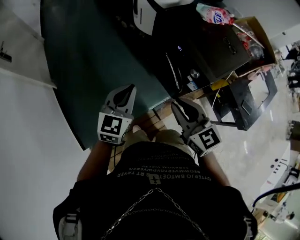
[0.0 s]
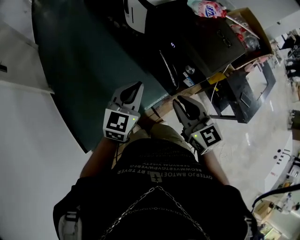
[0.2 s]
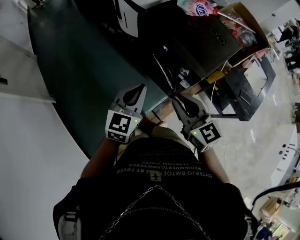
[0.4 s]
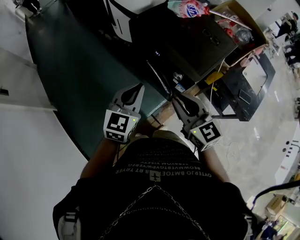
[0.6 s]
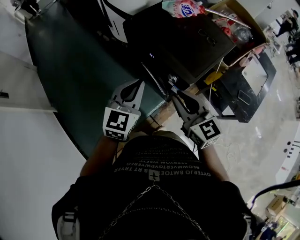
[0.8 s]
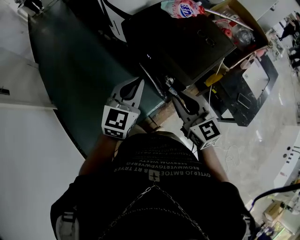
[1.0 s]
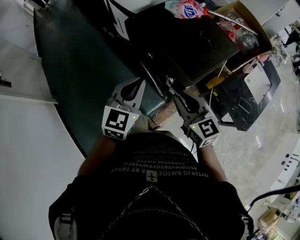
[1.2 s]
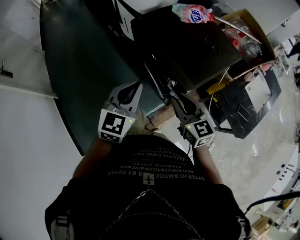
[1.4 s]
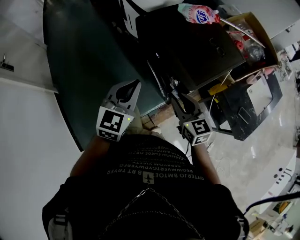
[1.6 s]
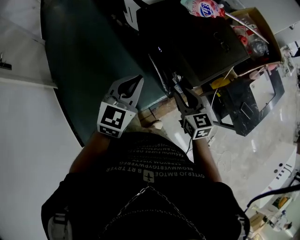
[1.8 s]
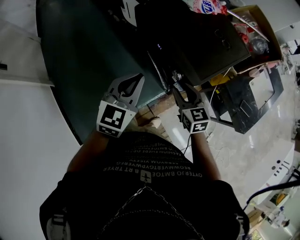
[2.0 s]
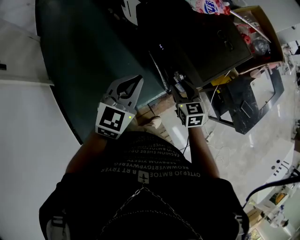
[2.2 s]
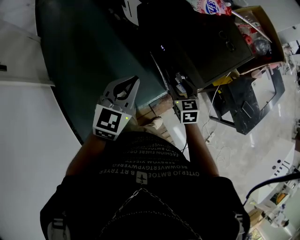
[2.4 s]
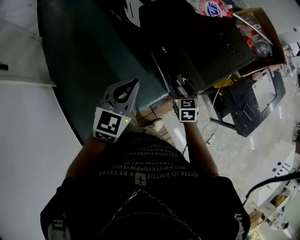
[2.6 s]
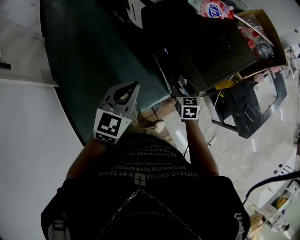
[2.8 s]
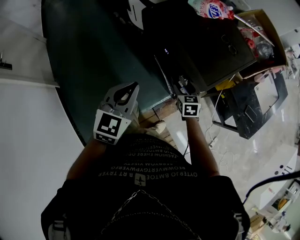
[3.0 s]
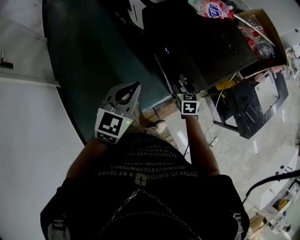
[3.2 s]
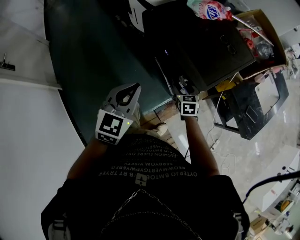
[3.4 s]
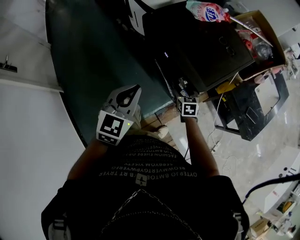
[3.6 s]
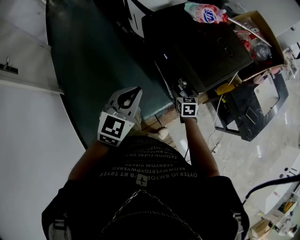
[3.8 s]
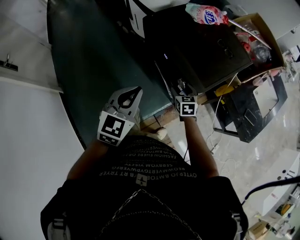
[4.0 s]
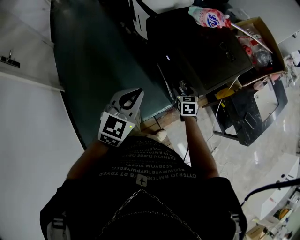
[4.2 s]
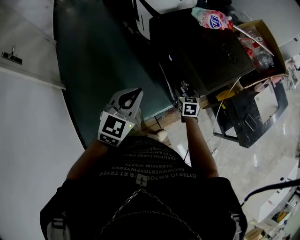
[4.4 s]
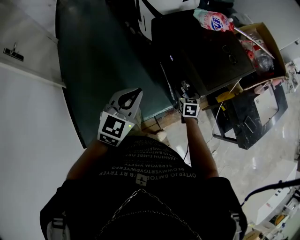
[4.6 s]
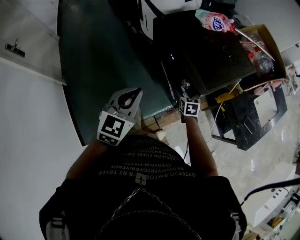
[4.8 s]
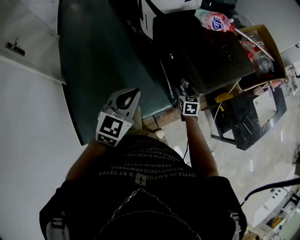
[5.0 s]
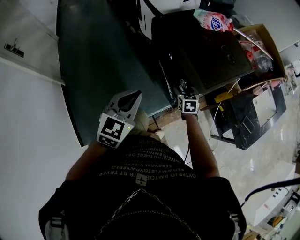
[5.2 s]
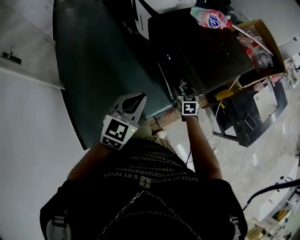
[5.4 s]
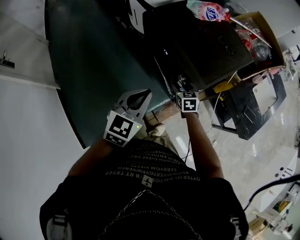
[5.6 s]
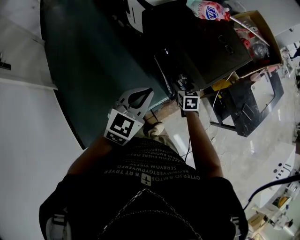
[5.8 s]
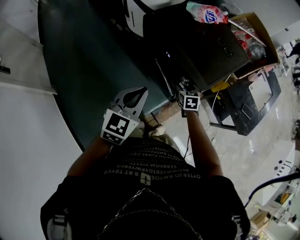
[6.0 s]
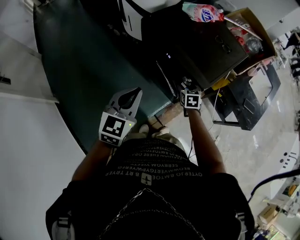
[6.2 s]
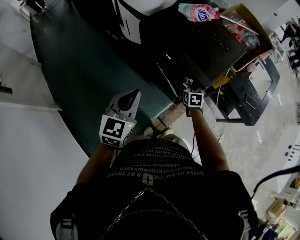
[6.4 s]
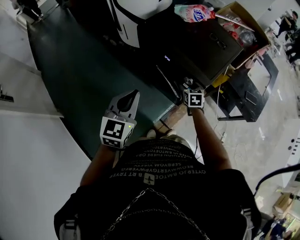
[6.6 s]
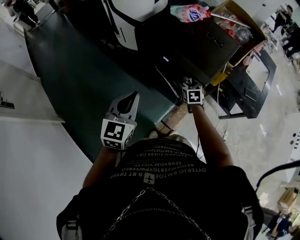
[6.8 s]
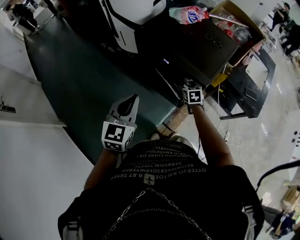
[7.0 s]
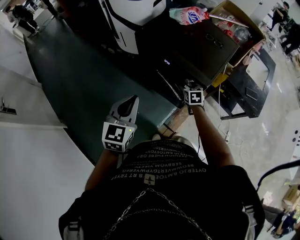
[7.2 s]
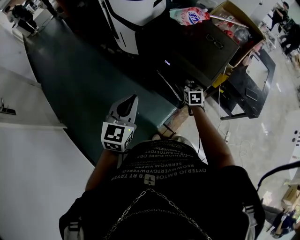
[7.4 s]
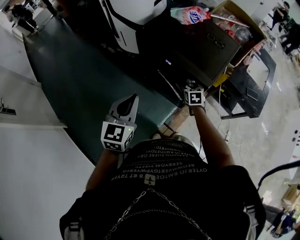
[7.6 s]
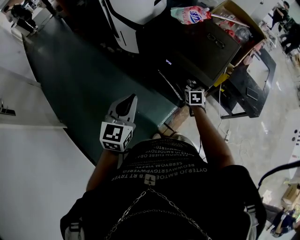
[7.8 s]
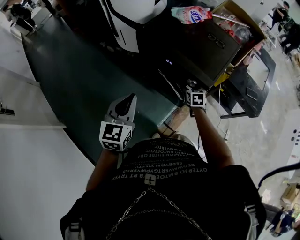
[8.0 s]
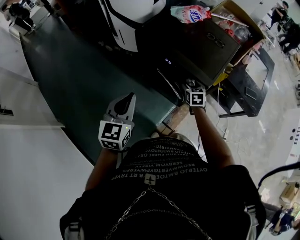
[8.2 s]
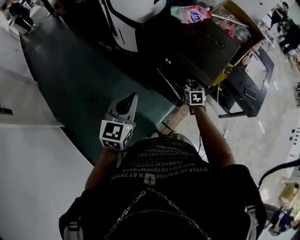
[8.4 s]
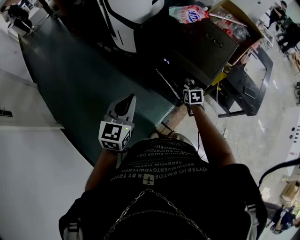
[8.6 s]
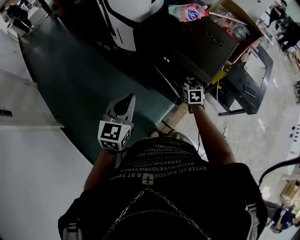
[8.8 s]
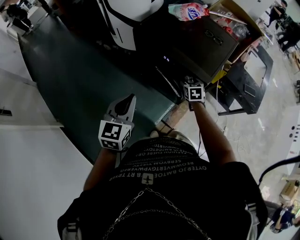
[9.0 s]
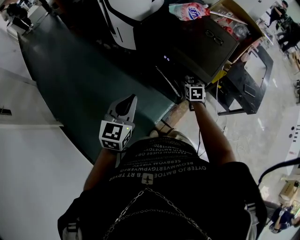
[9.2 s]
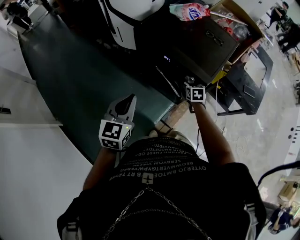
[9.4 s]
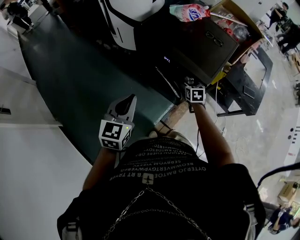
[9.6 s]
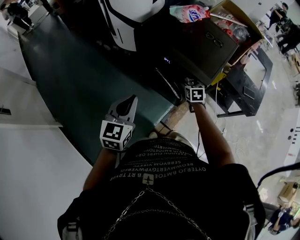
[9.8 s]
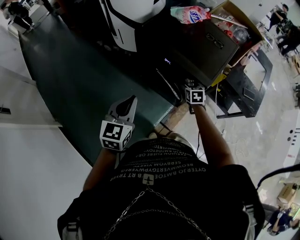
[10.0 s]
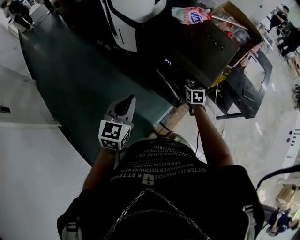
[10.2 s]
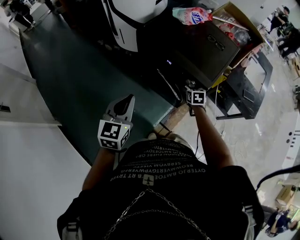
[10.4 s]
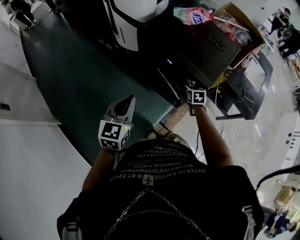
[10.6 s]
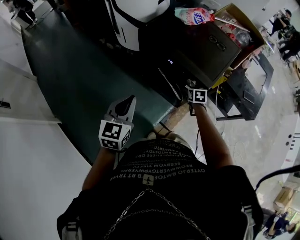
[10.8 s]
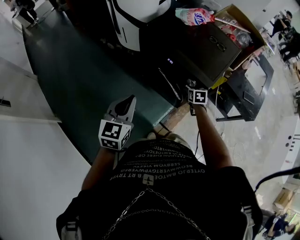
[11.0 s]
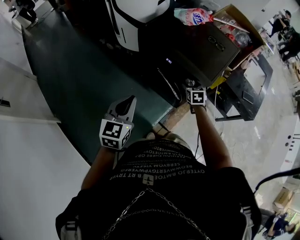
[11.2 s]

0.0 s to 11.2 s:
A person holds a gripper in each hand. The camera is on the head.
0.0 to 1.6 s: The right gripper moves to the right and forward, roughly 20 cm. Meanwhile the left gripper goes about 20 cm to the right.
1.6 to 3.2 s: The right gripper goes approximately 20 cm downward and forward, turns by some 30 degrees, and opens up. The left gripper shifts by roughly 5 cm.
3.2 to 4.8 s: The left gripper moves backward, roughly 5 cm.
4.8 to 6.4 s: The left gripper goes about 10 cm to the left.
6.4 to 8.0 s: The left gripper moves to the left, roughly 5 cm.
8.0 to 11.2 s: There are only small adjustments of the grippers.

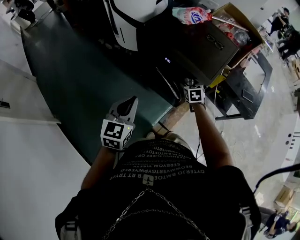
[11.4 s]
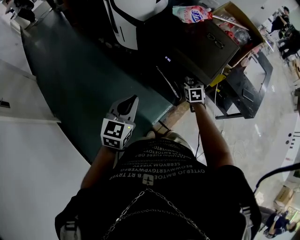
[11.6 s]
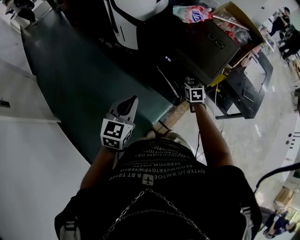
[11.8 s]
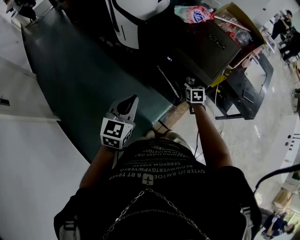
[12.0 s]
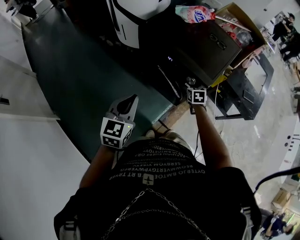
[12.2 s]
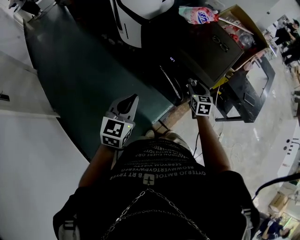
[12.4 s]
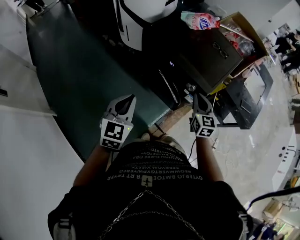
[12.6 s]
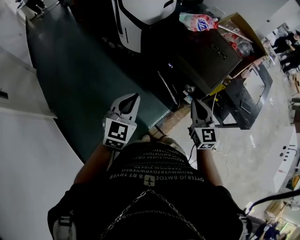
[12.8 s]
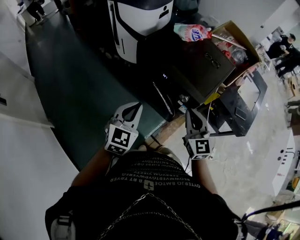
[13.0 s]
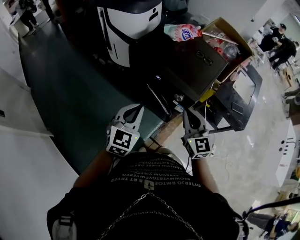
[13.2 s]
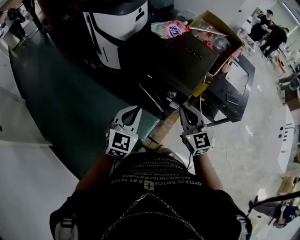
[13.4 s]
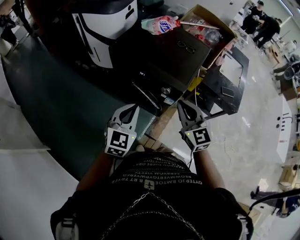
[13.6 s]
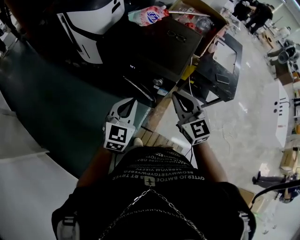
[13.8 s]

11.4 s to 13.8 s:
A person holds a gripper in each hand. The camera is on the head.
11.4 to 12.6 s: The right gripper is displaced upward and backward by approximately 15 cm, changes its angle by roughly 30 degrees, and closes its fingers.
12.6 to 13.8 s: The left gripper travels to the right by about 15 cm. The right gripper heads upward and backward, covering about 15 cm.

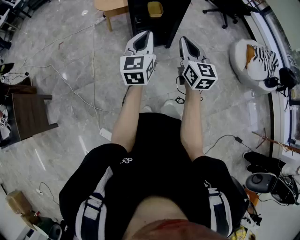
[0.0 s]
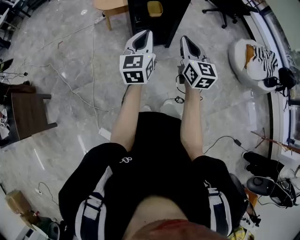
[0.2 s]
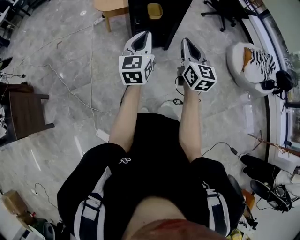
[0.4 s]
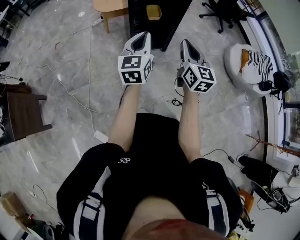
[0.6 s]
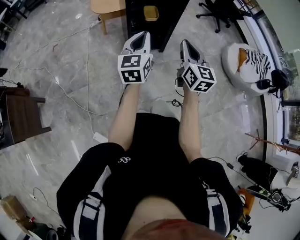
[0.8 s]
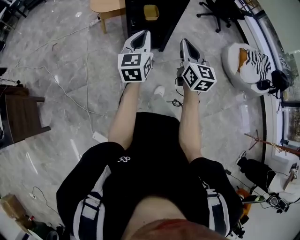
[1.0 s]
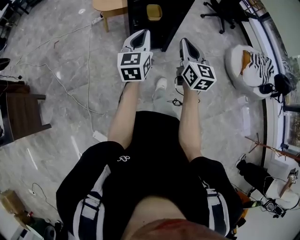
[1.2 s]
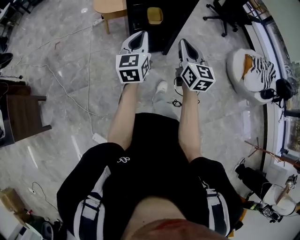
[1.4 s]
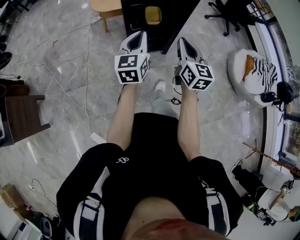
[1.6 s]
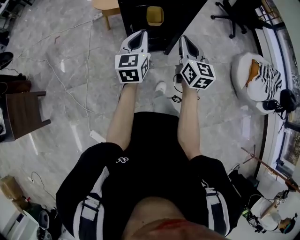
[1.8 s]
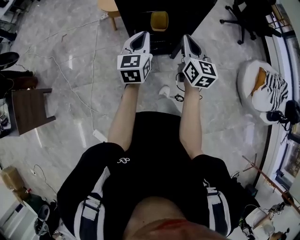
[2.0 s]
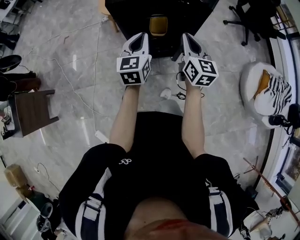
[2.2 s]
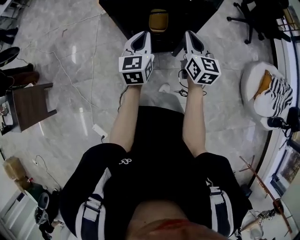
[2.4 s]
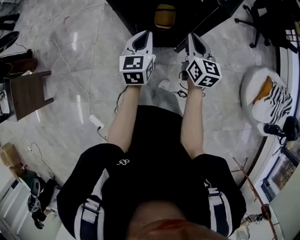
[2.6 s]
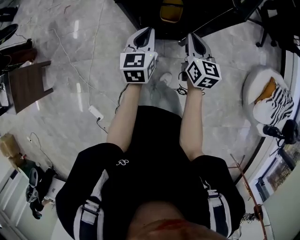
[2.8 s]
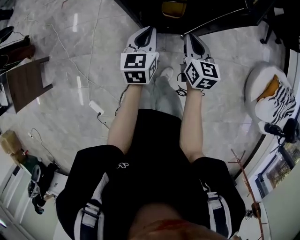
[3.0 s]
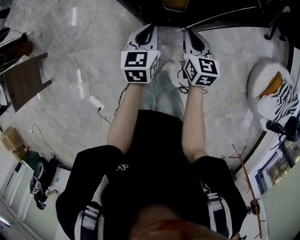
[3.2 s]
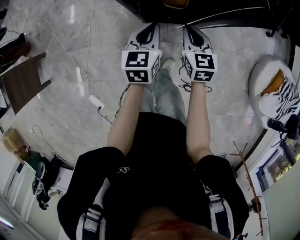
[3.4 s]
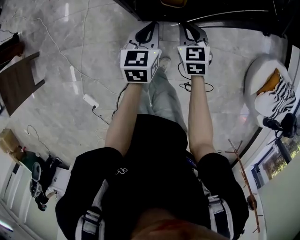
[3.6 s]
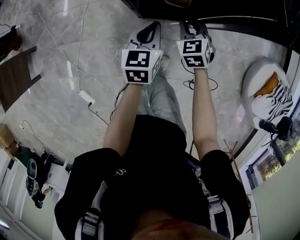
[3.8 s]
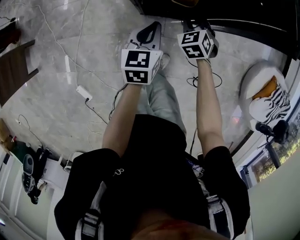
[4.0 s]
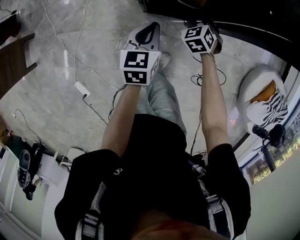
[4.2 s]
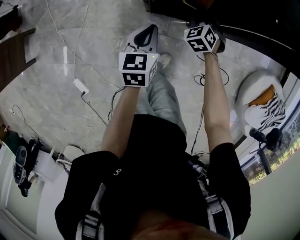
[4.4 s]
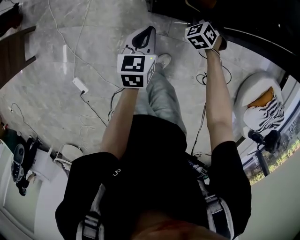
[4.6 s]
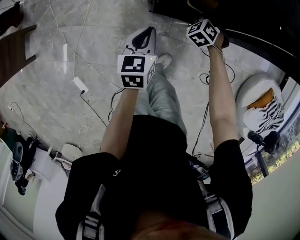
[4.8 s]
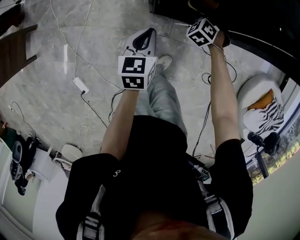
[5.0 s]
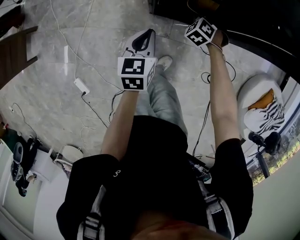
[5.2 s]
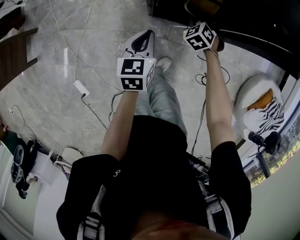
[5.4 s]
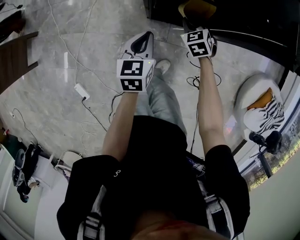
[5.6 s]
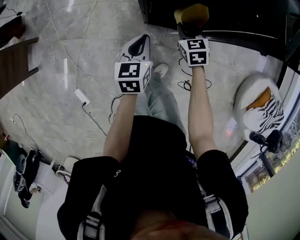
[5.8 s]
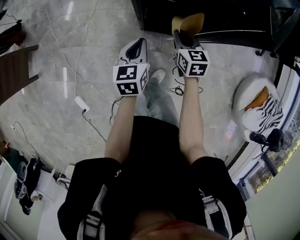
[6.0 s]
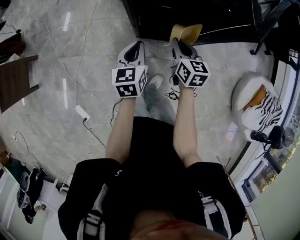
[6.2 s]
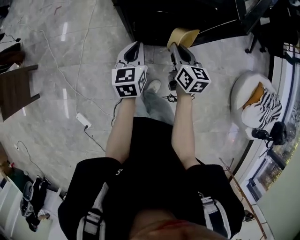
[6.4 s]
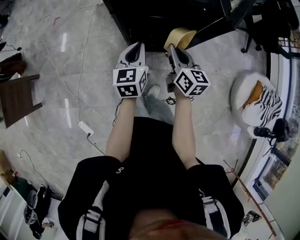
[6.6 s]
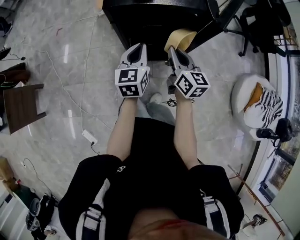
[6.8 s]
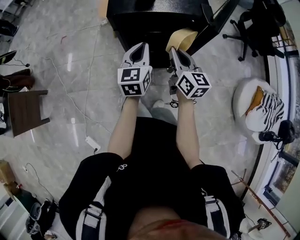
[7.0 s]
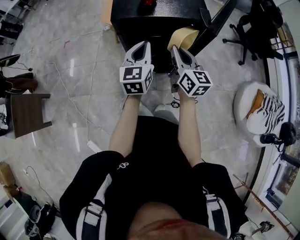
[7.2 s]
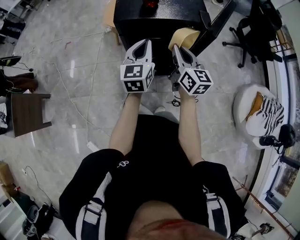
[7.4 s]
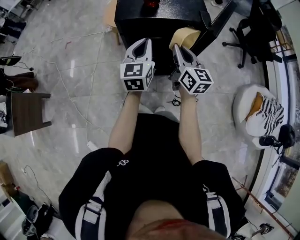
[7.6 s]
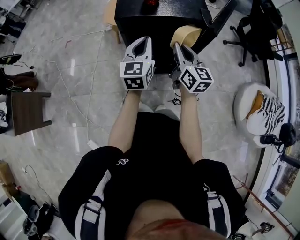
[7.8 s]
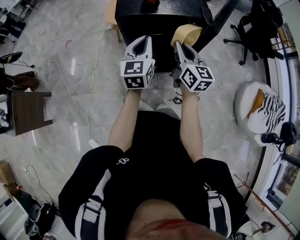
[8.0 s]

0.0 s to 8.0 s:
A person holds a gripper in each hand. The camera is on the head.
0.0 to 1.6 s: Both grippers travel together forward, some 15 cm.
1.6 to 3.2 s: Both grippers move forward and downward, about 30 cm. The left gripper rotates approximately 20 degrees. Meanwhile the right gripper rotates about 30 degrees.
3.2 to 4.8 s: The left gripper goes about 10 cm downward and to the left. The right gripper moves downward and forward, some 20 cm, and rolls counterclockwise, seen from behind, by about 70 degrees.
4.8 to 6.4 s: The left gripper travels upward by roughly 10 cm; the right gripper heads upward and backward, covering about 25 cm, and rotates around the line of its fingers by about 70 degrees, clockwise from behind.
6.4 to 8.0 s: Both grippers move upward, roughly 15 cm. The left gripper turns by approximately 20 degrees. Meanwhile the right gripper turns by approximately 20 degrees.

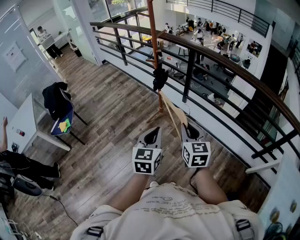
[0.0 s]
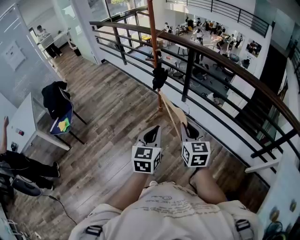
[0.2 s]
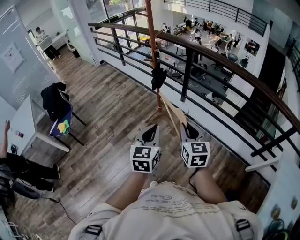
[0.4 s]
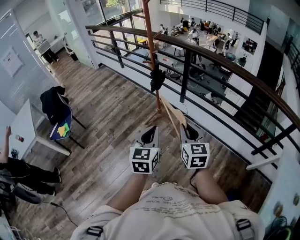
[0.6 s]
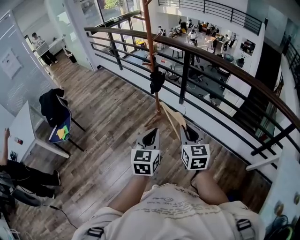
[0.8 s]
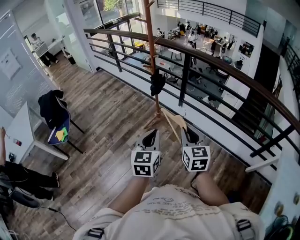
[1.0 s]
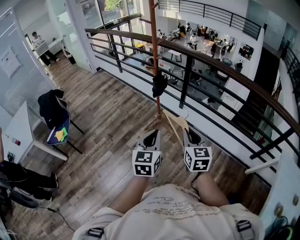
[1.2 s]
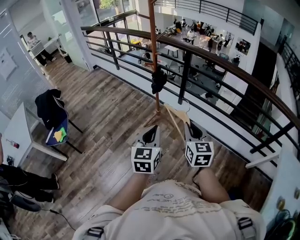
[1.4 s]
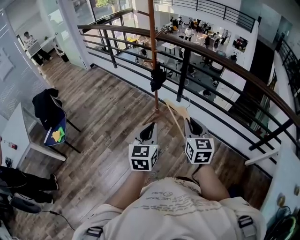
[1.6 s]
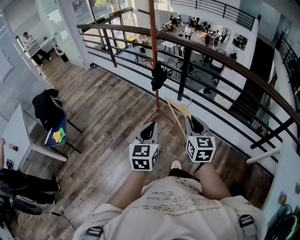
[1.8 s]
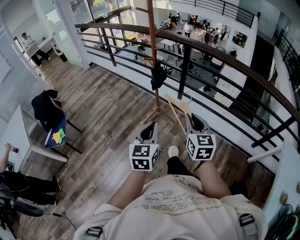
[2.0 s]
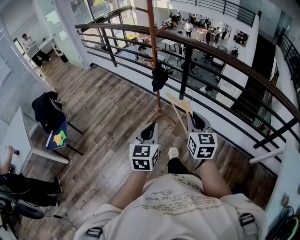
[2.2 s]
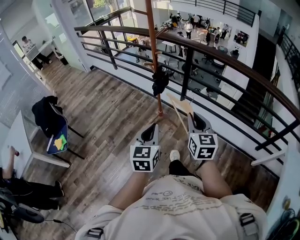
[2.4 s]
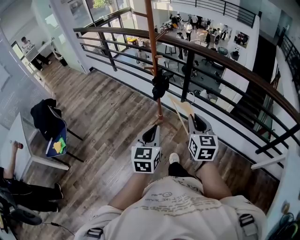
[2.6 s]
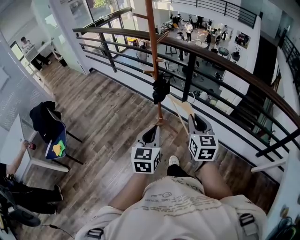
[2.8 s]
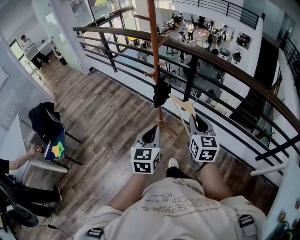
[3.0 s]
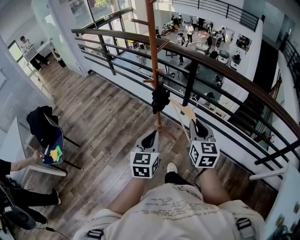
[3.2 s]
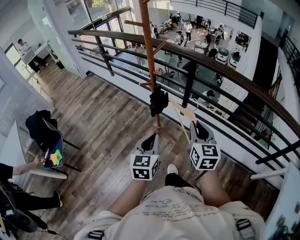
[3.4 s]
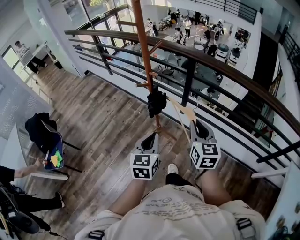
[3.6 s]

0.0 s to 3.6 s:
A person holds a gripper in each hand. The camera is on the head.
0.0 to 1.8 s: The left gripper heads to the left, covering some 10 cm. Meanwhile the right gripper goes some 5 cm to the left.
1.8 to 3.6 s: Both grippers travel together forward, roughly 25 cm.
